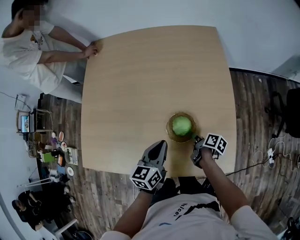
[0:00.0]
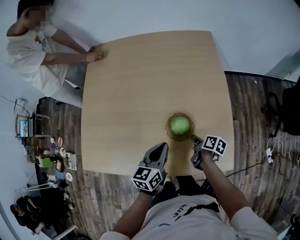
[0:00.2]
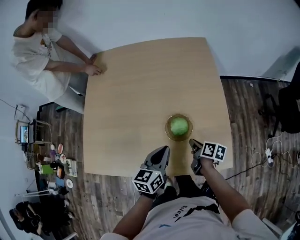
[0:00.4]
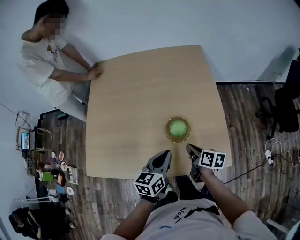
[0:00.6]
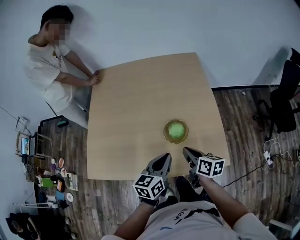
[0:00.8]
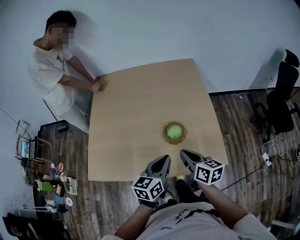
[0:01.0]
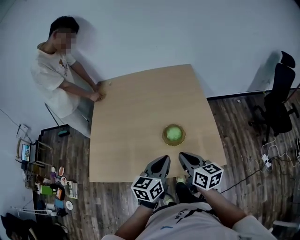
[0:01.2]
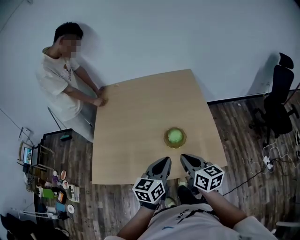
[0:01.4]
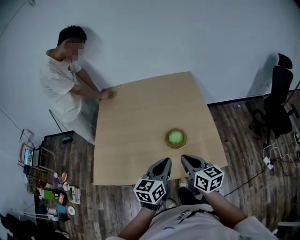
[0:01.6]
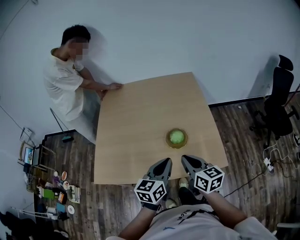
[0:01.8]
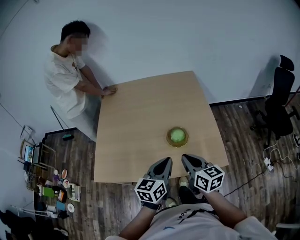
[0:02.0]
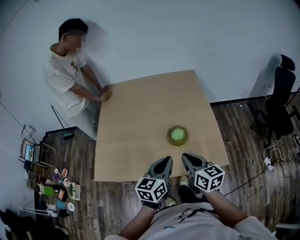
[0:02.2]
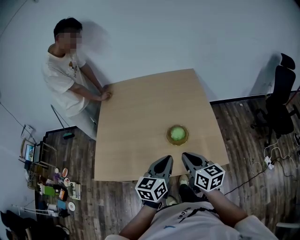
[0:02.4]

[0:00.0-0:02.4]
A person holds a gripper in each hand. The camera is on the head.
0:00.0 to 0:01.2: The left gripper goes about 15 cm upward.

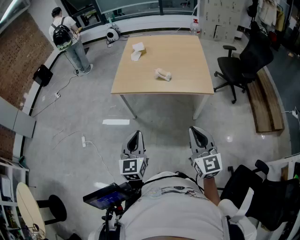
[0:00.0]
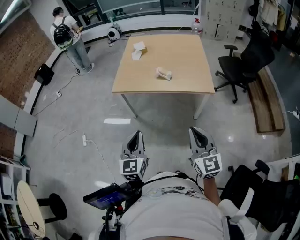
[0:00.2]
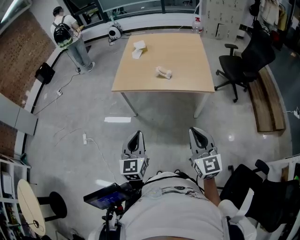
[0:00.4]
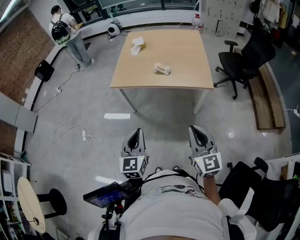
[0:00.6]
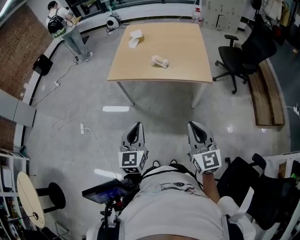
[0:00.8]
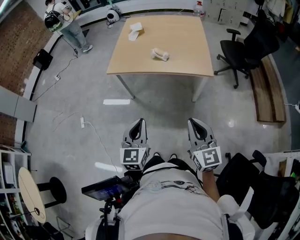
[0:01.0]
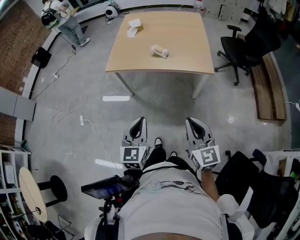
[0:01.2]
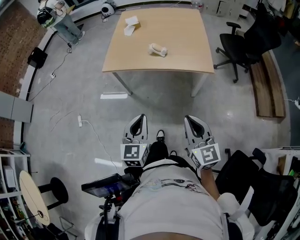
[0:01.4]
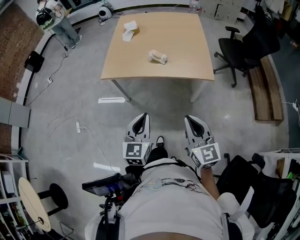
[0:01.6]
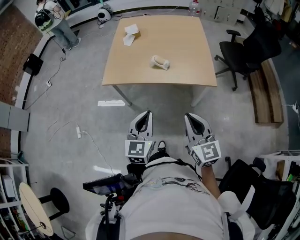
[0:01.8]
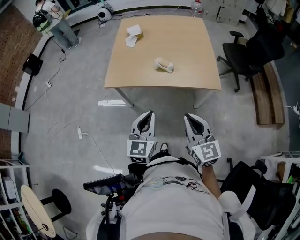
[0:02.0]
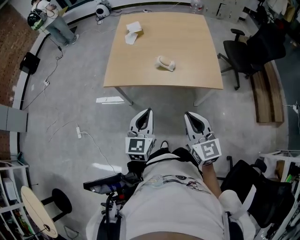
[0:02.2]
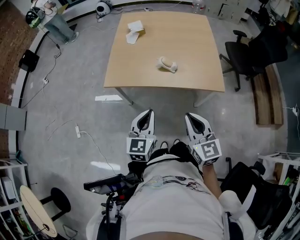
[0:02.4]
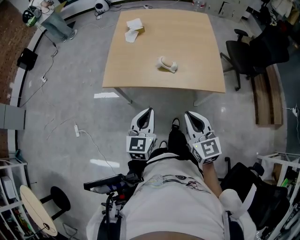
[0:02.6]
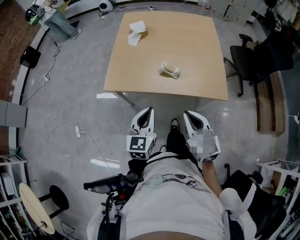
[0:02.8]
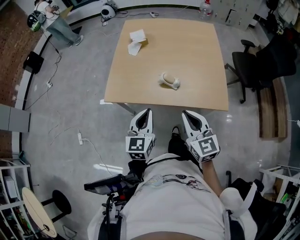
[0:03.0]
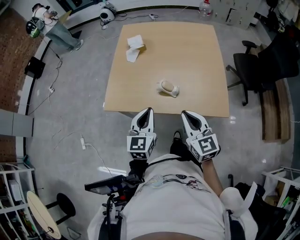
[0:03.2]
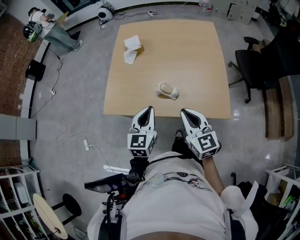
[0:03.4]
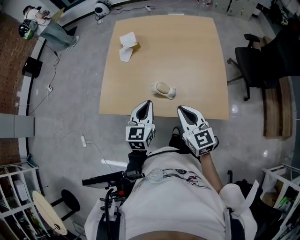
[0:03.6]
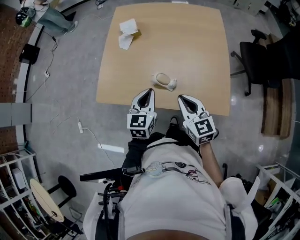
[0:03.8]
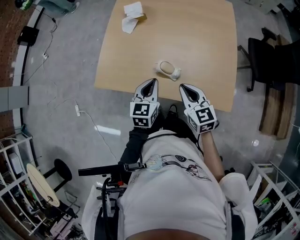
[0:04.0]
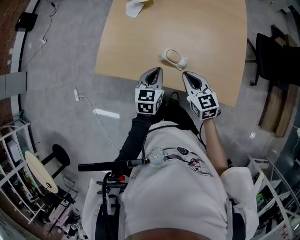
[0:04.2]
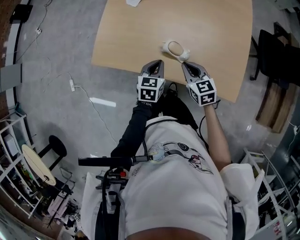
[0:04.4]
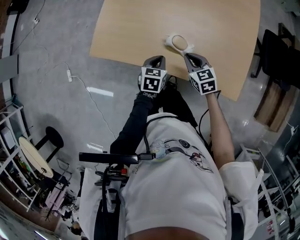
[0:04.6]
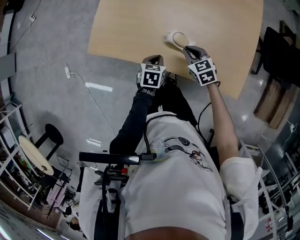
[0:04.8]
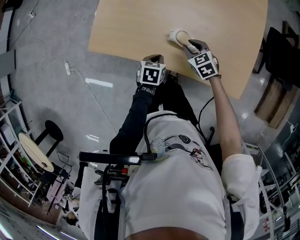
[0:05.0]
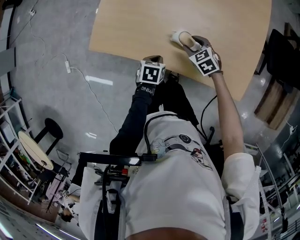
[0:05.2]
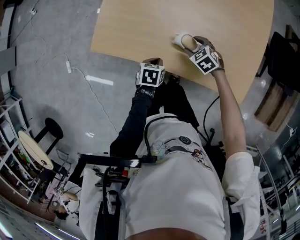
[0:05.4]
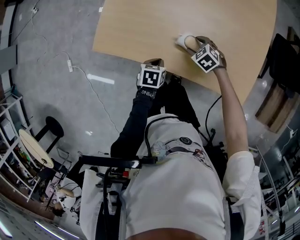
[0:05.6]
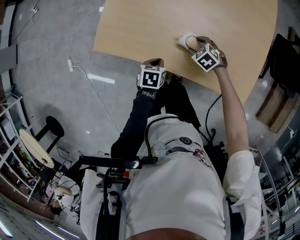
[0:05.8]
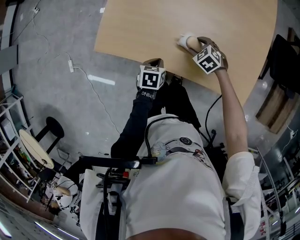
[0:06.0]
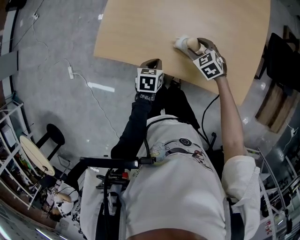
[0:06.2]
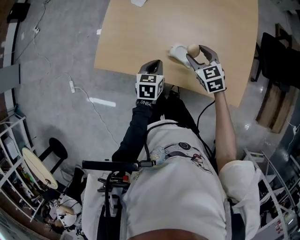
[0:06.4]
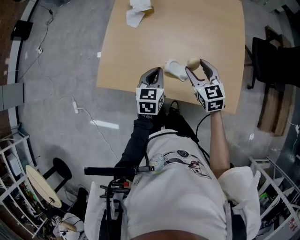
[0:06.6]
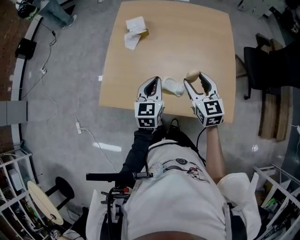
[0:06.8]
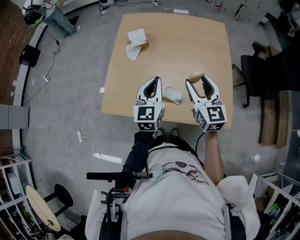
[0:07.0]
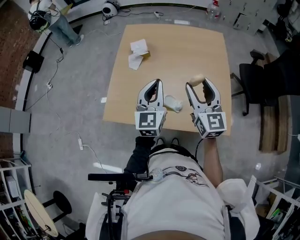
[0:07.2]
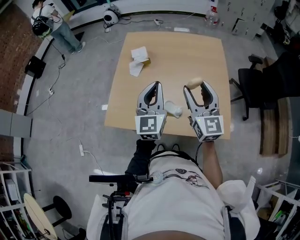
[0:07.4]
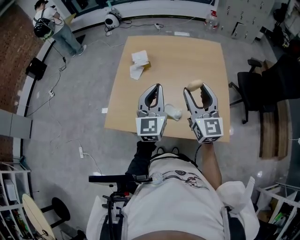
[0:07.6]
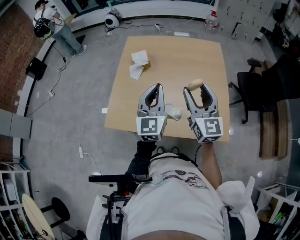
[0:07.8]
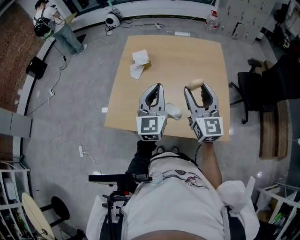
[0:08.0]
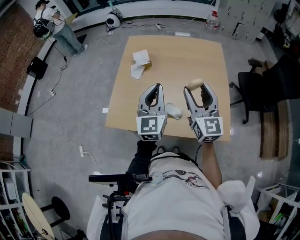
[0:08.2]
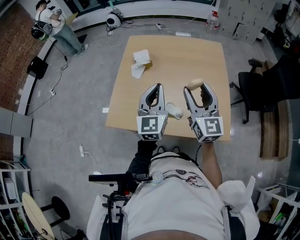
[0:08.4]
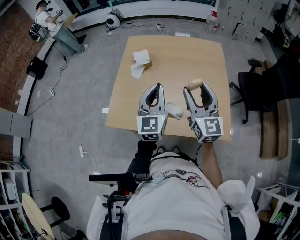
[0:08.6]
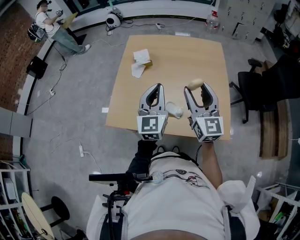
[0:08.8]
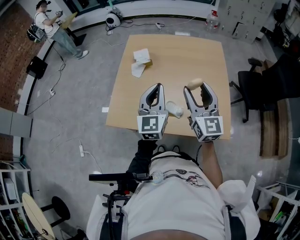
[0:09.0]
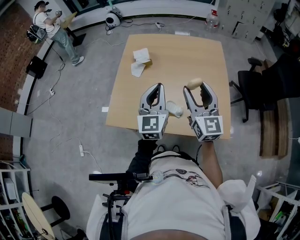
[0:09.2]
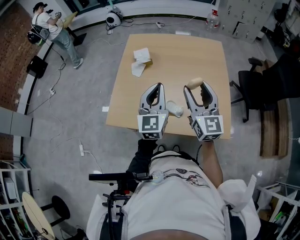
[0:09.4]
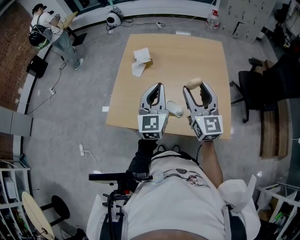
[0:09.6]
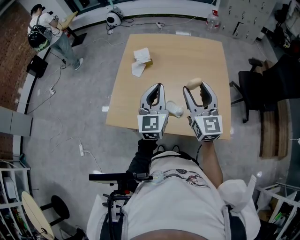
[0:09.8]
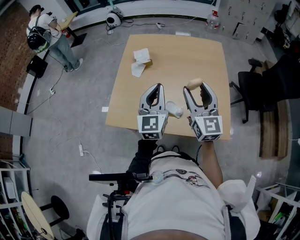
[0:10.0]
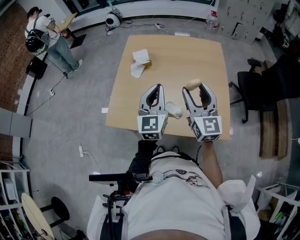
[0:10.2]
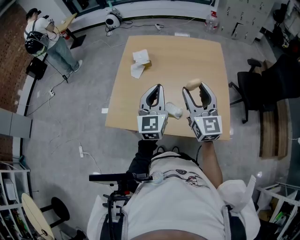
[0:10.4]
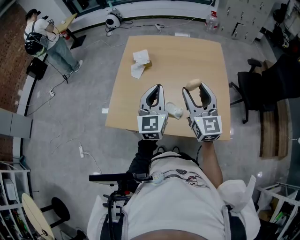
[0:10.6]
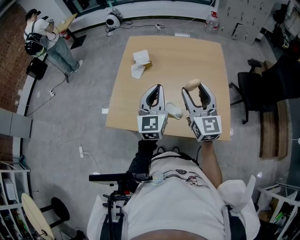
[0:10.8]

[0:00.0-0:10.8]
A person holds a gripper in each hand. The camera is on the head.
0:00.0 to 0:01.6: The right gripper heads forward, covering approximately 5 cm; the left gripper is displaced to the right and forward by approximately 10 cm.
0:01.6 to 0:03.0: Both grippers travel together forward, roughly 30 cm.
0:03.0 to 0:04.6: The grippers both shift downward and forward by some 35 cm. The left gripper angles its fingers downward, by approximately 40 degrees. The right gripper tilts its fingers some 30 degrees downward.
0:04.6 to 0:06.2: The left gripper heads to the left, covering about 5 cm, while the right gripper shifts some 5 cm forward, reaches about 10 cm downward, then returns, changes its angle by some 20 degrees, and opens up.
0:06.2 to 0:07.8: Both grippers move upward, about 40 cm. The left gripper tips its fingers upward by approximately 60 degrees. The right gripper tips its fingers upward by some 60 degrees.
0:07.8 to 0:09.2: Both grippers stay put.
0:09.2 to 0:10.8: The two grippers keep their place.

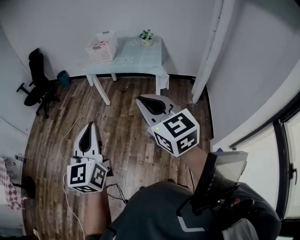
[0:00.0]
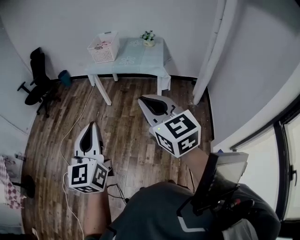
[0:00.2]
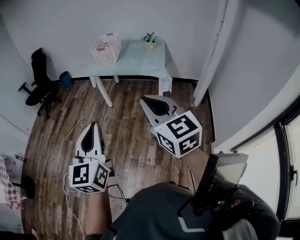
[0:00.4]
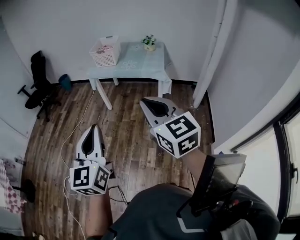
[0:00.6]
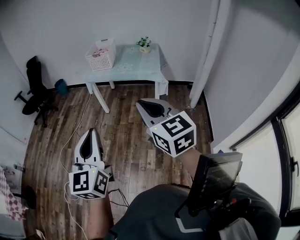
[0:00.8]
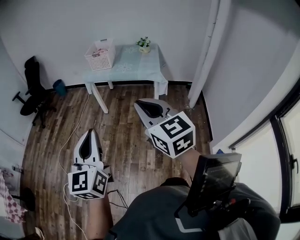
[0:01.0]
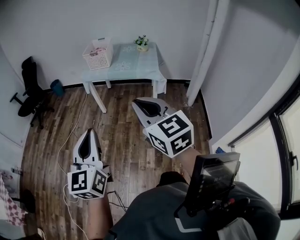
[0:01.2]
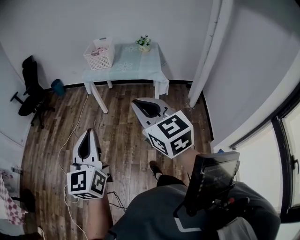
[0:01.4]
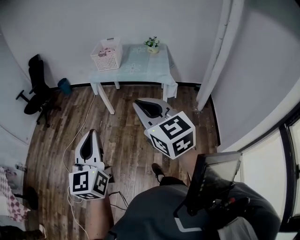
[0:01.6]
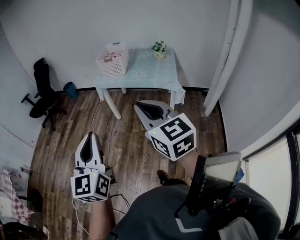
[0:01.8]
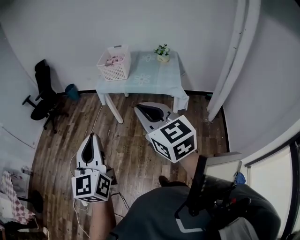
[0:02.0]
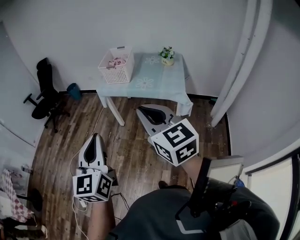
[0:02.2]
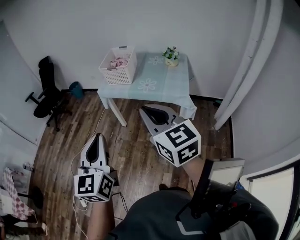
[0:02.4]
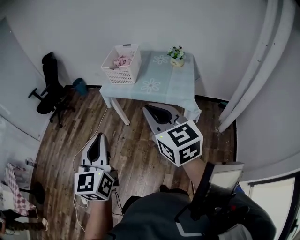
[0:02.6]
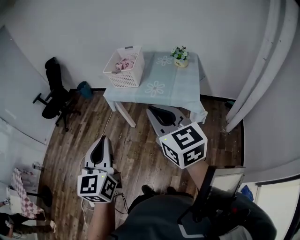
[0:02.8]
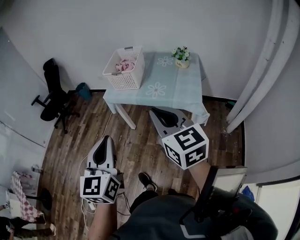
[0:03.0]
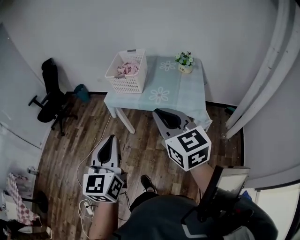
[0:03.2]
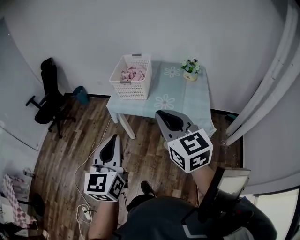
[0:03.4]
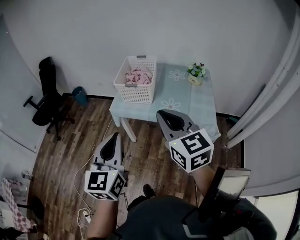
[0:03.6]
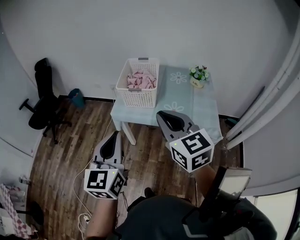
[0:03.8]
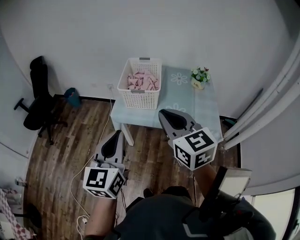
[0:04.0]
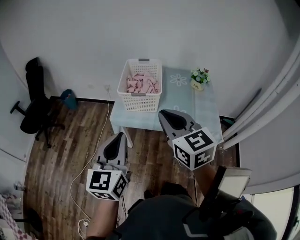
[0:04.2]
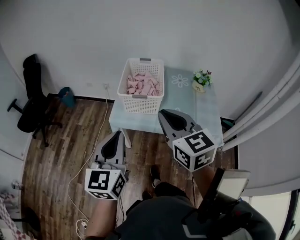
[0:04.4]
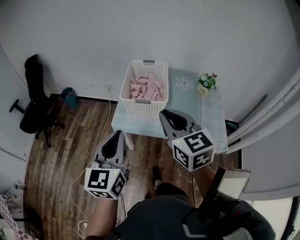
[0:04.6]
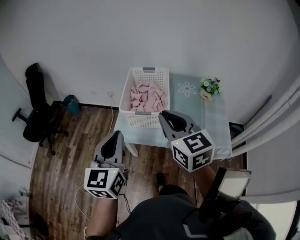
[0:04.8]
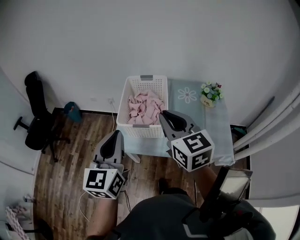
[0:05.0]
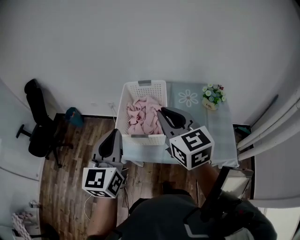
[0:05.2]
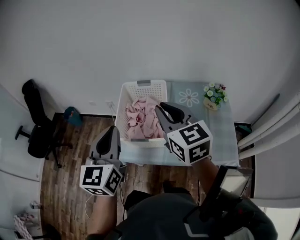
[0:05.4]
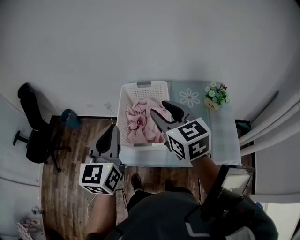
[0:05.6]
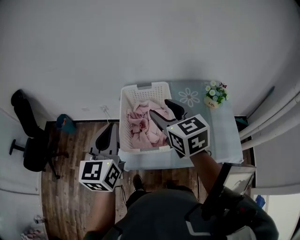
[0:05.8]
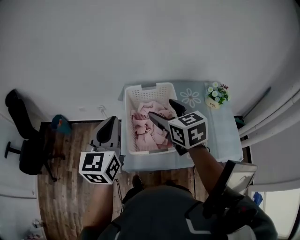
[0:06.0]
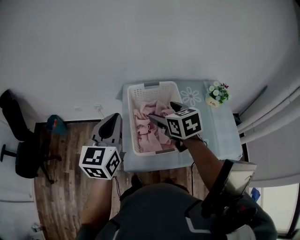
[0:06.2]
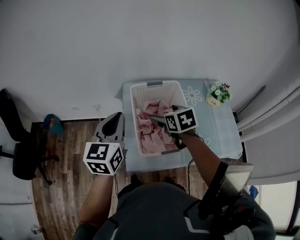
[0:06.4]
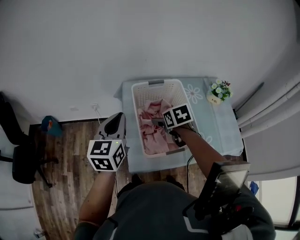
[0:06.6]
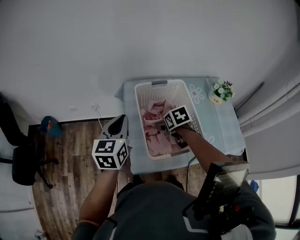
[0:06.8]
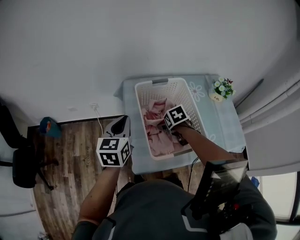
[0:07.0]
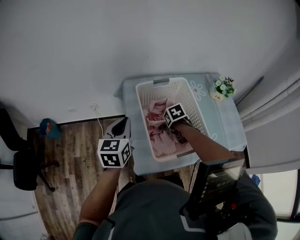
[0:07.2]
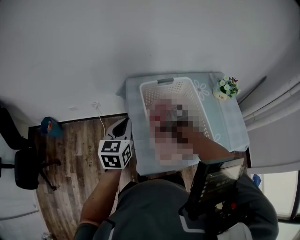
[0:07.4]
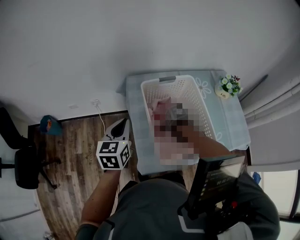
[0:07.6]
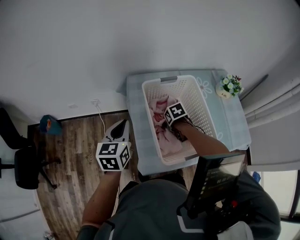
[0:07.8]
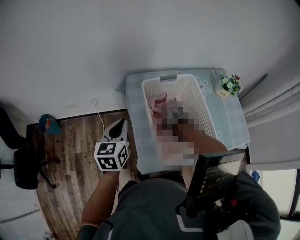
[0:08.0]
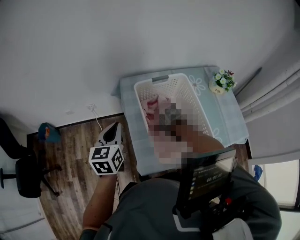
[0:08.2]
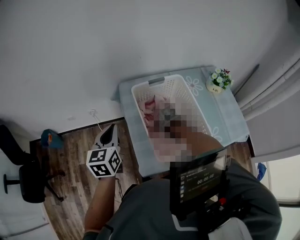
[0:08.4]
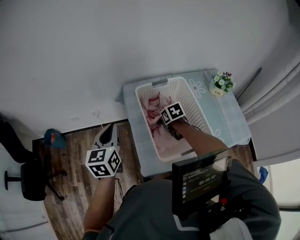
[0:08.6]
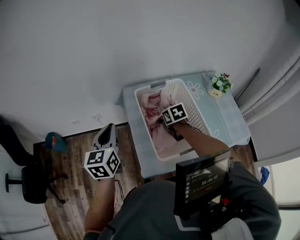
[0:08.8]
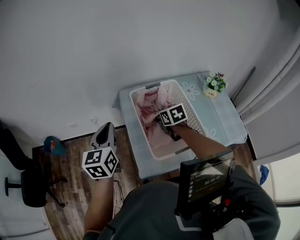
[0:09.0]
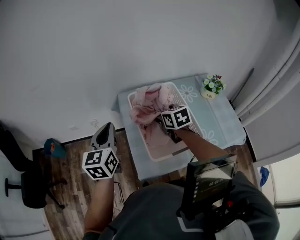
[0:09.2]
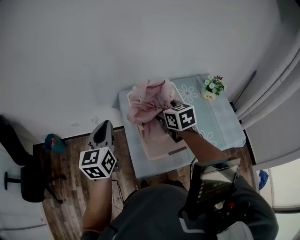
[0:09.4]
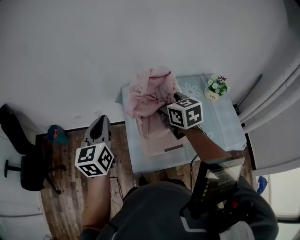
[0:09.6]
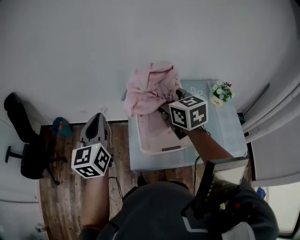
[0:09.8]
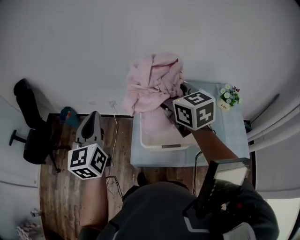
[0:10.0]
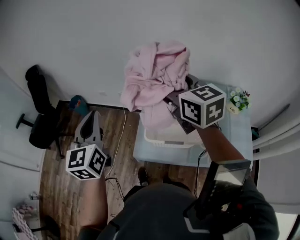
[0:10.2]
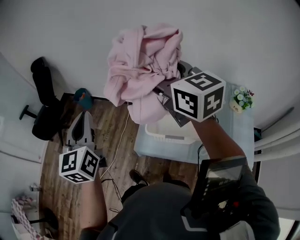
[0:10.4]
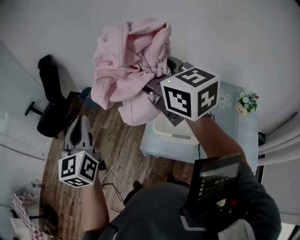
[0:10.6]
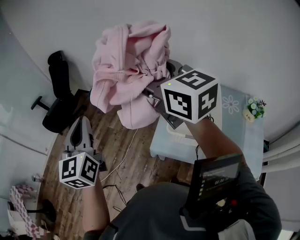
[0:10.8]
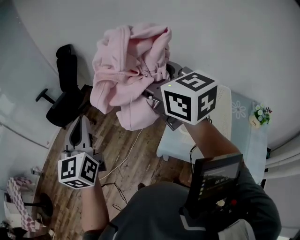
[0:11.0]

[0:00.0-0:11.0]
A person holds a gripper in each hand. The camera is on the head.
0:00.0 to 0:01.6: The left gripper goes approximately 10 cm to the left and forward; the right gripper heads forward and to the left, covering roughly 10 cm.
0:01.6 to 0:03.2: Both grippers move forward, some 35 cm.
0:03.2 to 0:04.8: The grippers both shift forward by approximately 35 cm.
0:04.8 to 0:06.2: The left gripper shifts roughly 30 cm forward. Meanwhile the right gripper moves forward and downward, some 30 cm, swivels about 30 degrees, and opens.
0:06.2 to 0:07.8: The right gripper heads downward, covering approximately 30 cm, and tips its fingers downward by approximately 40 degrees; the left gripper shifts about 20 cm downward, forward and to the left.
0:07.8 to 0:09.4: The left gripper moves upward, some 10 cm. Meanwhile the right gripper moves upward, about 25 cm, and points its fingers approximately 50 degrees further upward.
0:09.4 to 0:11.0: The right gripper shifts by some 40 cm, and rotates roughly 50 degrees. The left gripper moves about 35 cm, and swivels approximately 50 degrees.
